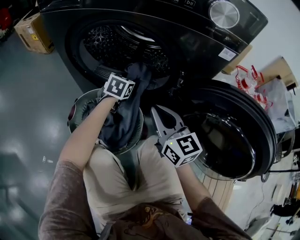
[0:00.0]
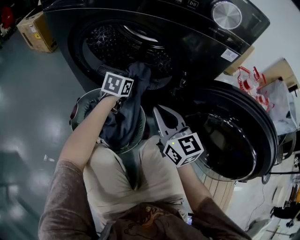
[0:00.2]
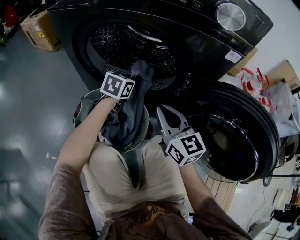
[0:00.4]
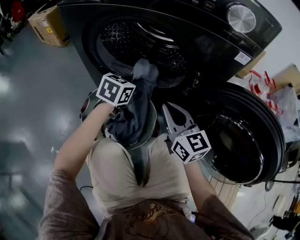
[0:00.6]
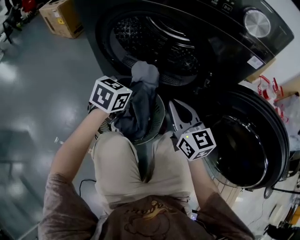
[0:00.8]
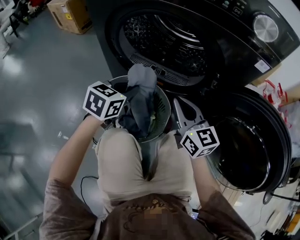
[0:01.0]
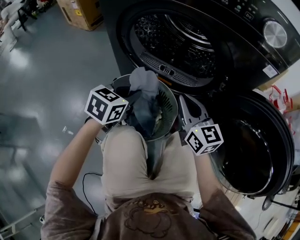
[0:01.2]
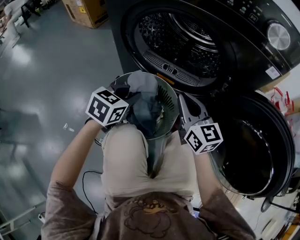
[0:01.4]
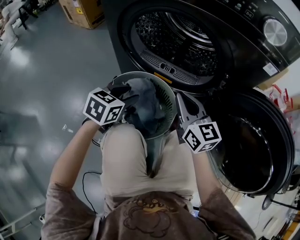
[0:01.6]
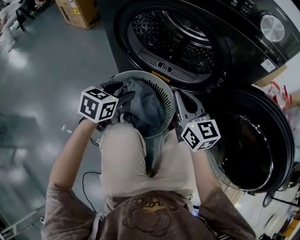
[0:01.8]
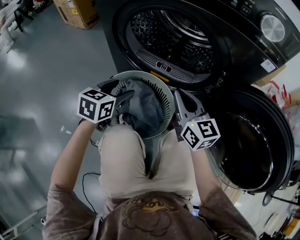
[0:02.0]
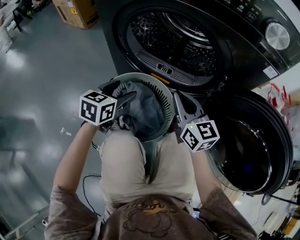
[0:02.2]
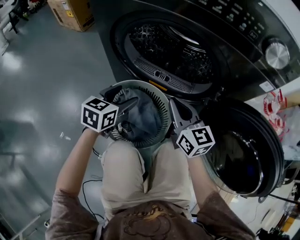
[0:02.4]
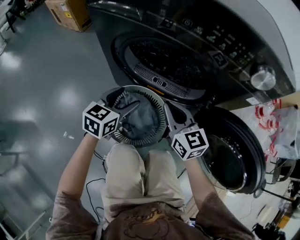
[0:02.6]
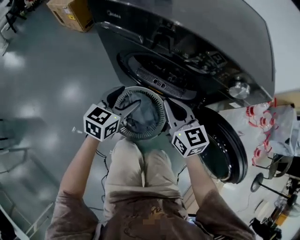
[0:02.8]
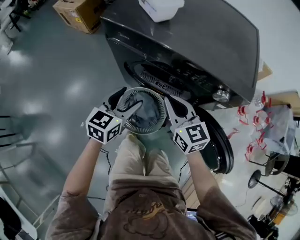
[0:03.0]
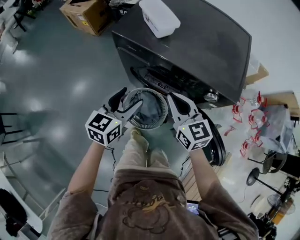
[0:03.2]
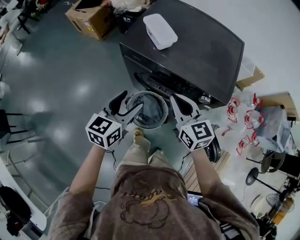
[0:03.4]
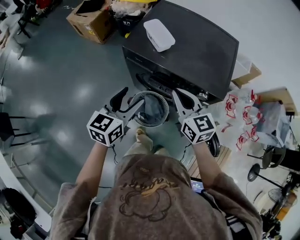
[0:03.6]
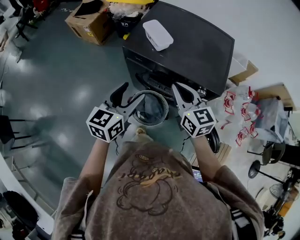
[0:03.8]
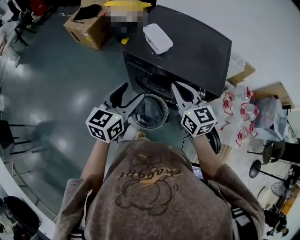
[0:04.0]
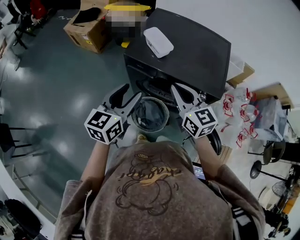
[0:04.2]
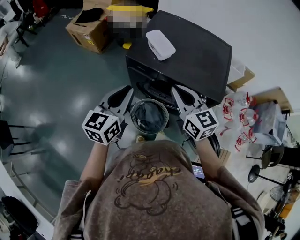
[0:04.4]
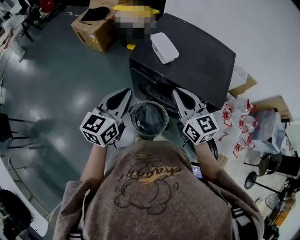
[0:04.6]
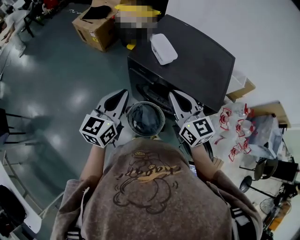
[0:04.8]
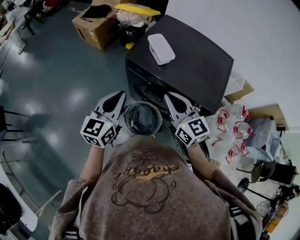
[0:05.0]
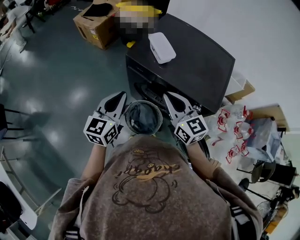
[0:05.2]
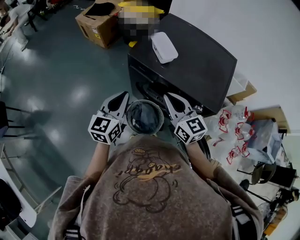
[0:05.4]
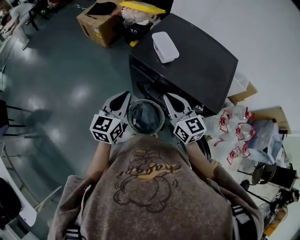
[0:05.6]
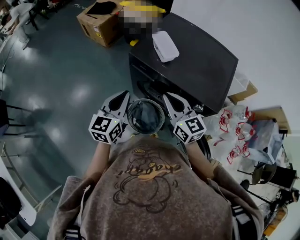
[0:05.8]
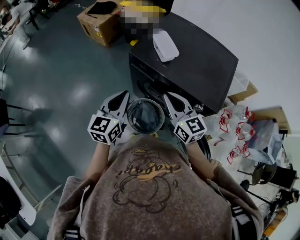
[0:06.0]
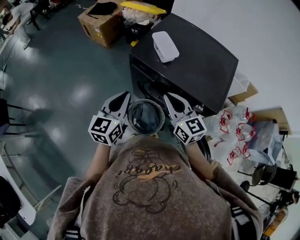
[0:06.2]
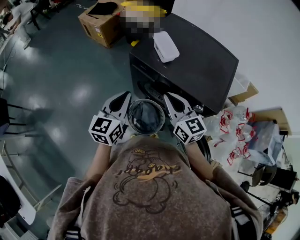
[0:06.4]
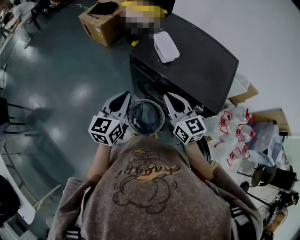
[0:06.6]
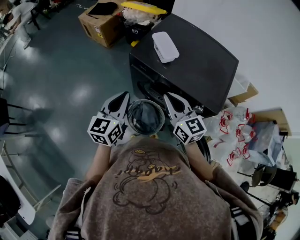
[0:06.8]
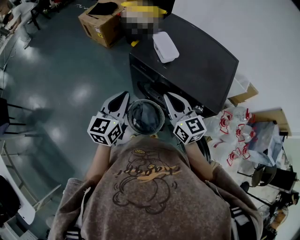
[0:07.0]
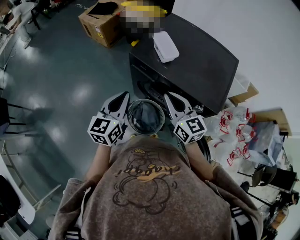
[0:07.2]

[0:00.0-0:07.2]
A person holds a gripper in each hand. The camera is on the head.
0:00.0 to 0:01.4: The right gripper moves to the left, about 5 cm. The left gripper travels backward and to the left by roughly 25 cm.
0:01.4 to 0:02.8: The grippers both shift upward by some 15 cm. The left gripper opens up.
0:02.8 to 0:04.4: The grippers both shift upward by roughly 40 cm. The left gripper closes.
0:04.4 to 0:05.8: The left gripper heads downward, covering about 5 cm.
0:05.8 to 0:07.2: Both grippers stay about where they are.

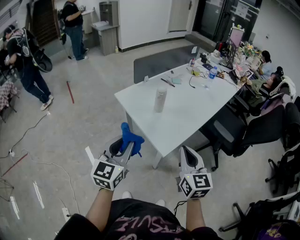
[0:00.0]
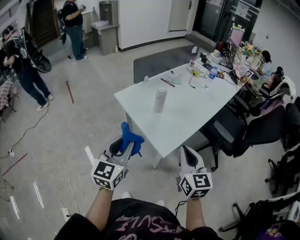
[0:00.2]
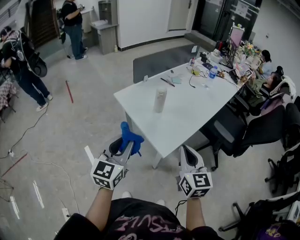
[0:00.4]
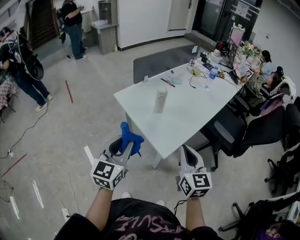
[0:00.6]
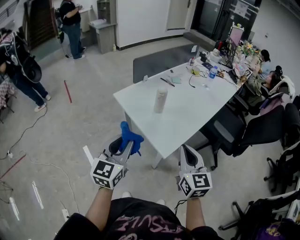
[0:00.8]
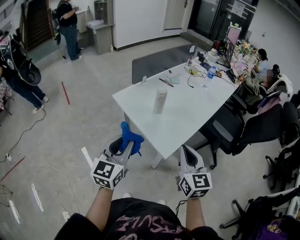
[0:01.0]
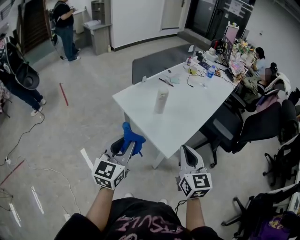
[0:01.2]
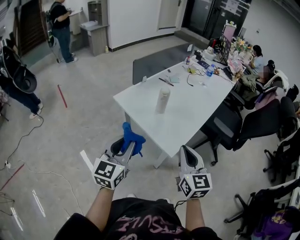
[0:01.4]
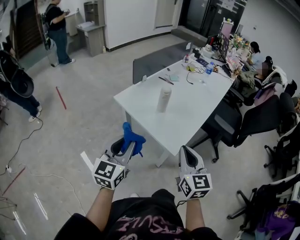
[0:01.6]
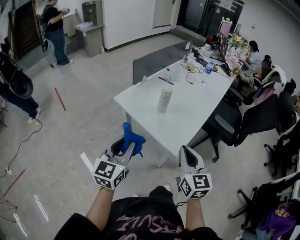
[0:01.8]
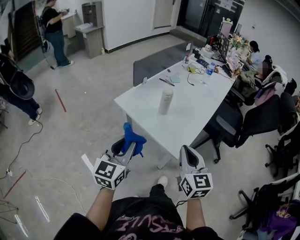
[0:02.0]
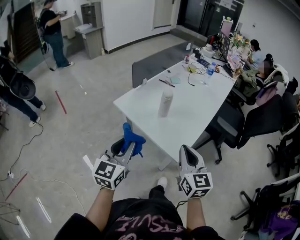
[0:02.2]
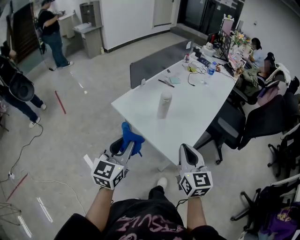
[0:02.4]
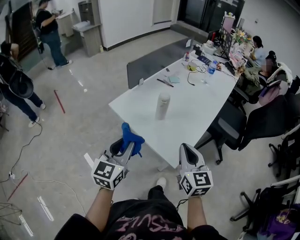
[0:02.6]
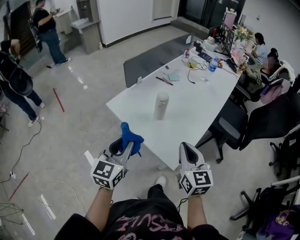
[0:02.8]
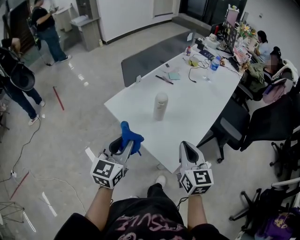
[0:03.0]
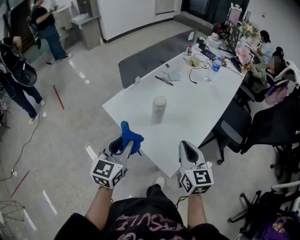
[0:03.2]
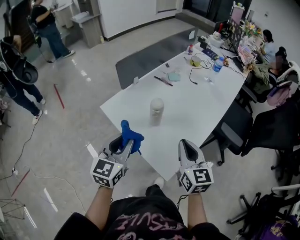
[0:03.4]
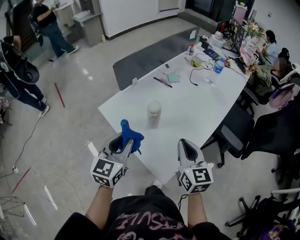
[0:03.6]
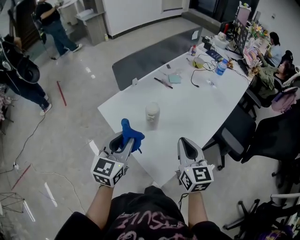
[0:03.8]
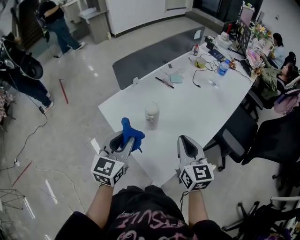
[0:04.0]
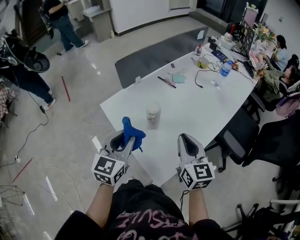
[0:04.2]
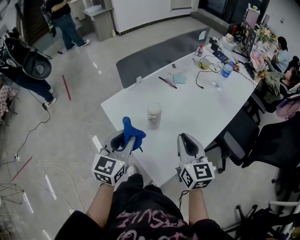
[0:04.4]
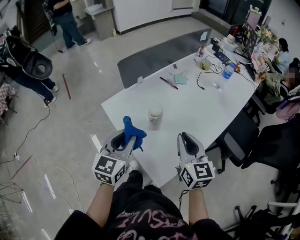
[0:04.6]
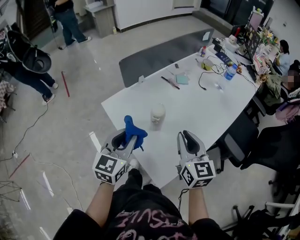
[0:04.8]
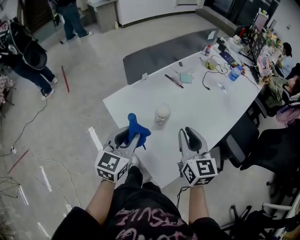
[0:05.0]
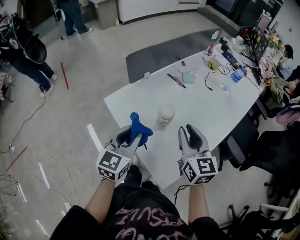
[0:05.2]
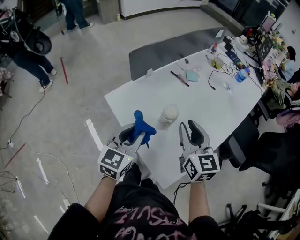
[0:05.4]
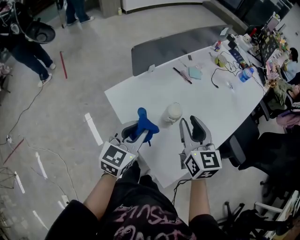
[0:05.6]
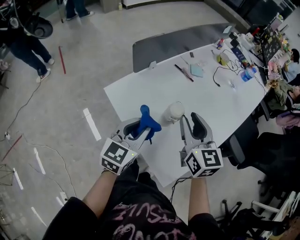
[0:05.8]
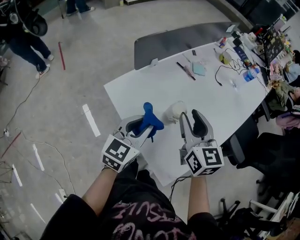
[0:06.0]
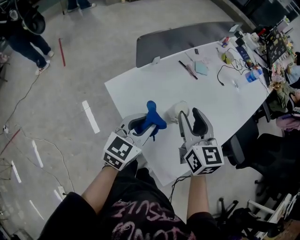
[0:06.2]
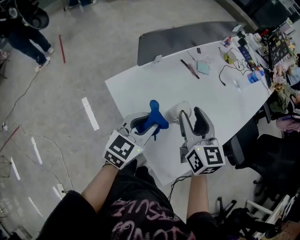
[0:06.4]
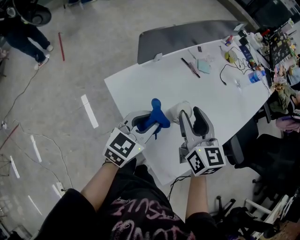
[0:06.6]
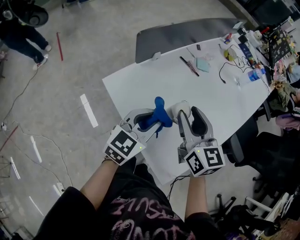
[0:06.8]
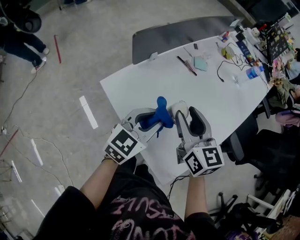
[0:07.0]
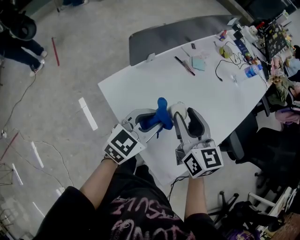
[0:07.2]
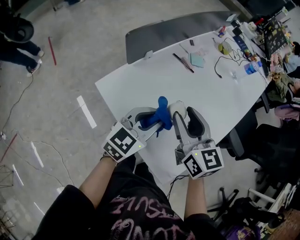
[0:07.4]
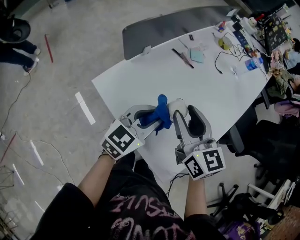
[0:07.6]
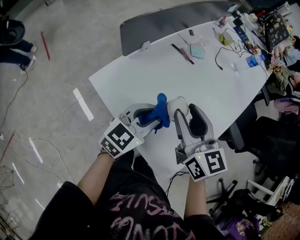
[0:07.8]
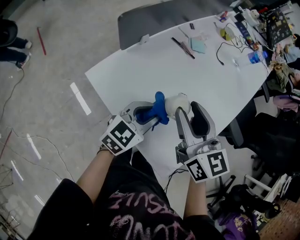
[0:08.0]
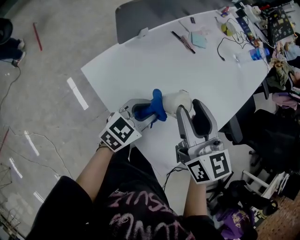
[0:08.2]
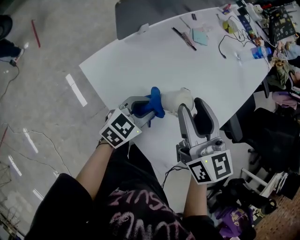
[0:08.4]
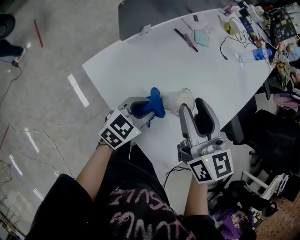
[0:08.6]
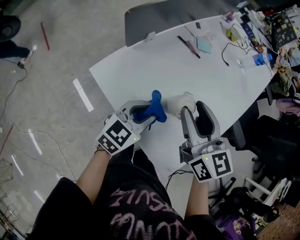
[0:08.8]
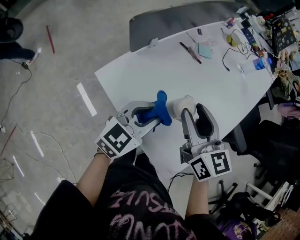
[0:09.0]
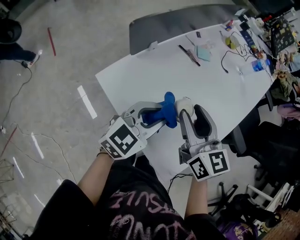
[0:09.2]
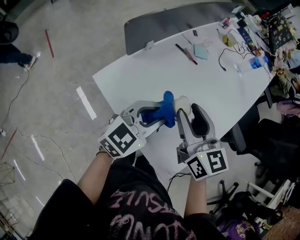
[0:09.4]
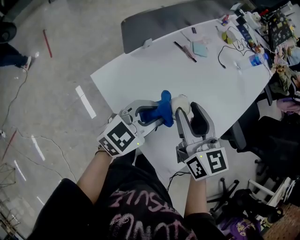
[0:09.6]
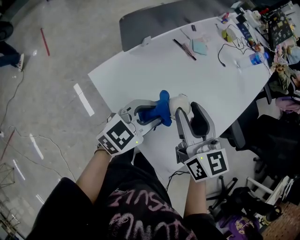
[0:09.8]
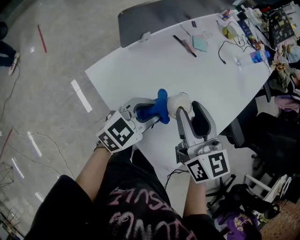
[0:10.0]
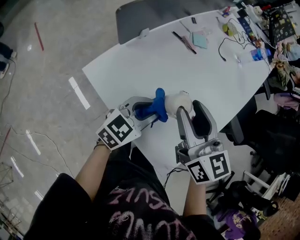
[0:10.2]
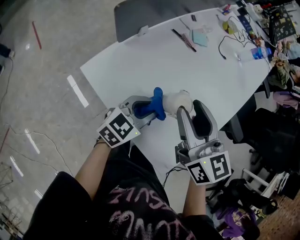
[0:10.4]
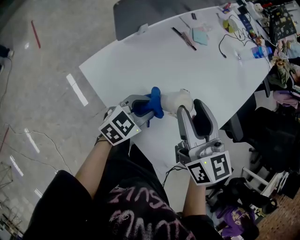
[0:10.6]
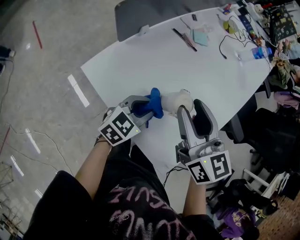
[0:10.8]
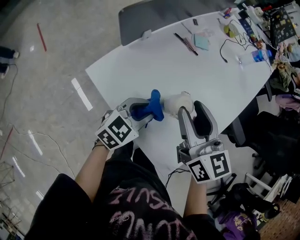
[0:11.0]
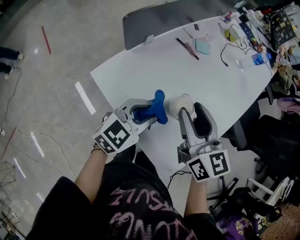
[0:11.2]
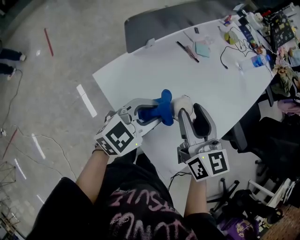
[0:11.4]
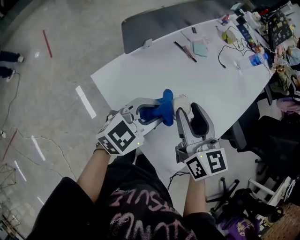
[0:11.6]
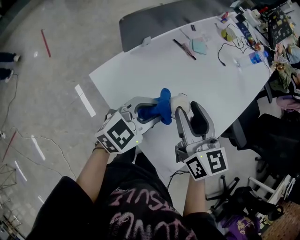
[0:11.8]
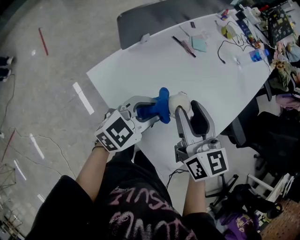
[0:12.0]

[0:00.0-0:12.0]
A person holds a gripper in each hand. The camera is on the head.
0:00.0 to 0:01.6: The two grippers go approximately 10 cm to the left.
0:01.6 to 0:03.0: The two grippers go about 15 cm forward.
0:03.0 to 0:04.4: The left gripper travels forward and to the right by some 10 cm. Meanwhile the right gripper shifts approximately 15 cm forward.
0:04.4 to 0:06.0: The right gripper travels forward and to the left by roughly 15 cm, and opens up, while the left gripper heads forward and downward, covering about 10 cm.
0:06.0 to 0:07.6: The left gripper changes place by roughly 5 cm.
0:07.6 to 0:09.0: The left gripper moves approximately 10 cm downward and comes back.
0:09.0 to 0:10.4: The left gripper heads downward, covering some 5 cm.
0:10.4 to 0:12.0: The left gripper is displaced upward by roughly 5 cm.

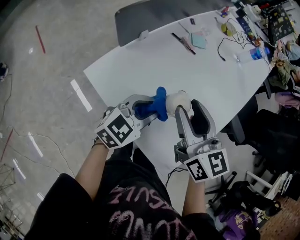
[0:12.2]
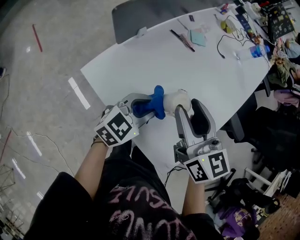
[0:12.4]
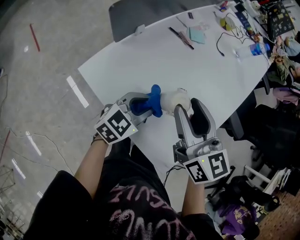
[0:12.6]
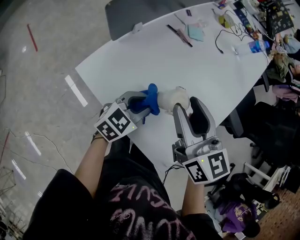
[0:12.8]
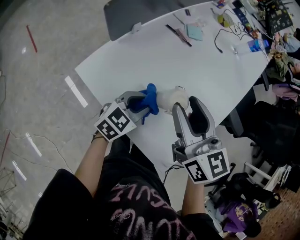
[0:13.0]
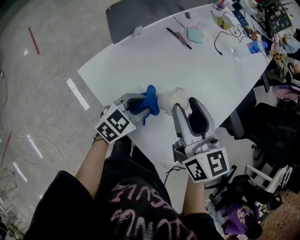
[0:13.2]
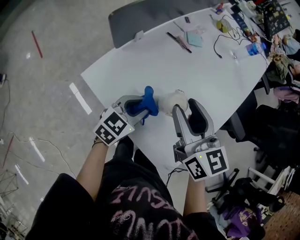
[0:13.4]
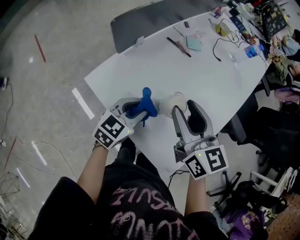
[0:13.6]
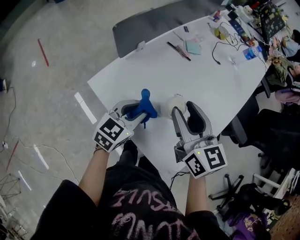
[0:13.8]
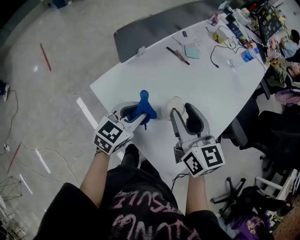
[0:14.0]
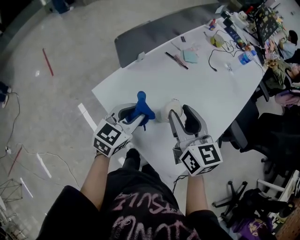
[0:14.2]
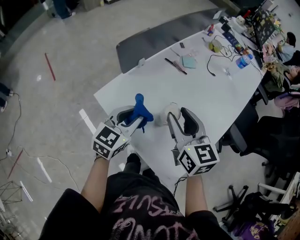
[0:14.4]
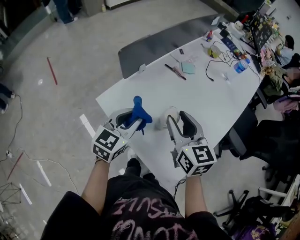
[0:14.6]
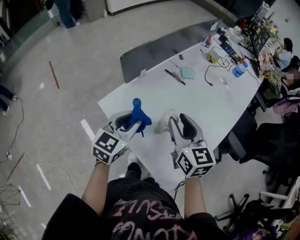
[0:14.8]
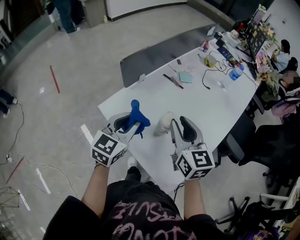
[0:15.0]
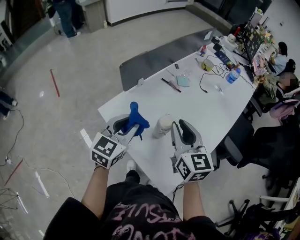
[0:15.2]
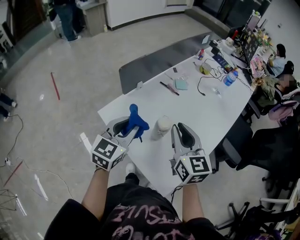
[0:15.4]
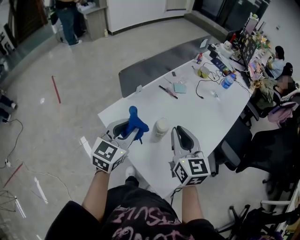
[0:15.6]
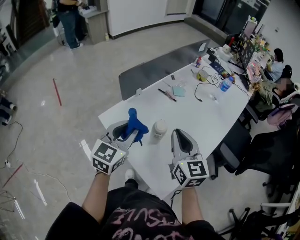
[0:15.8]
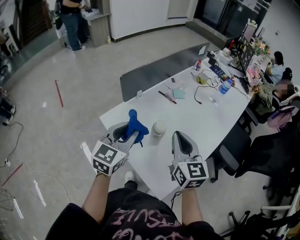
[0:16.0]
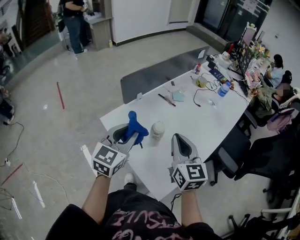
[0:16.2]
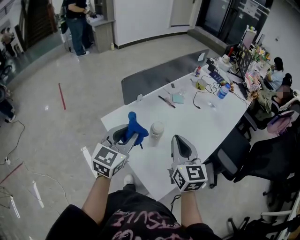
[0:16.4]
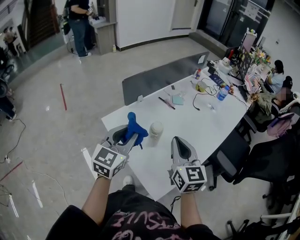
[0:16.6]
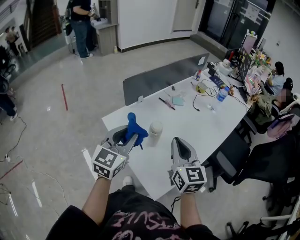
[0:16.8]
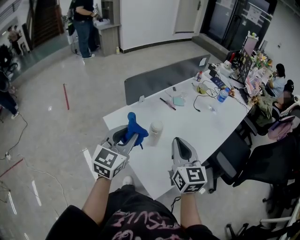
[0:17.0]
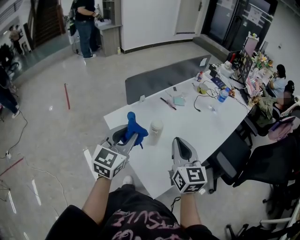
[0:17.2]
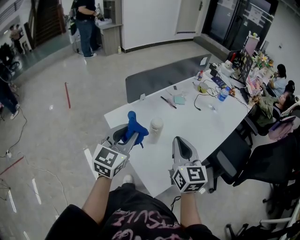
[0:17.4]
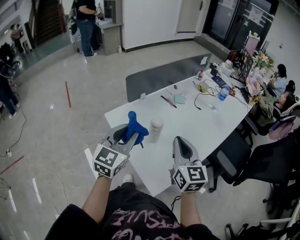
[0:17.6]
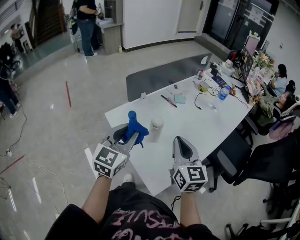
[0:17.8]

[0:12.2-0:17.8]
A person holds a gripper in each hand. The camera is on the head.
0:13.6 to 0:15.0: The left gripper moves upward, about 15 cm.
0:15.0 to 0:16.4: The left gripper moves upward and backward, some 10 cm. Meanwhile the right gripper is displaced backward and to the right by some 10 cm, and closes.
0:16.4 to 0:17.8: The left gripper moves backward, roughly 5 cm. The right gripper changes place by roughly 5 cm.
